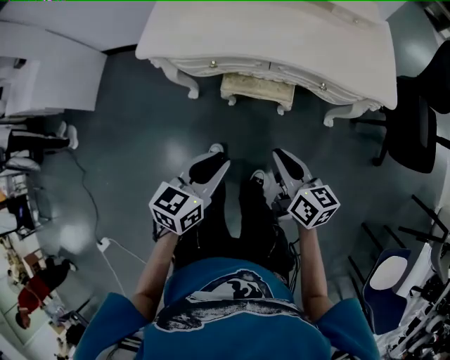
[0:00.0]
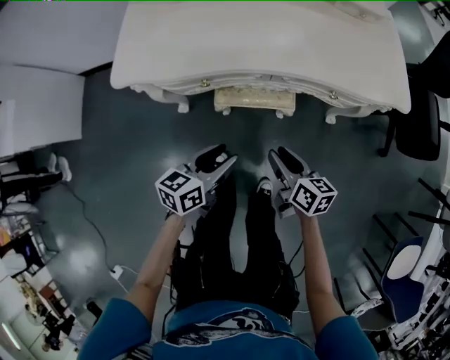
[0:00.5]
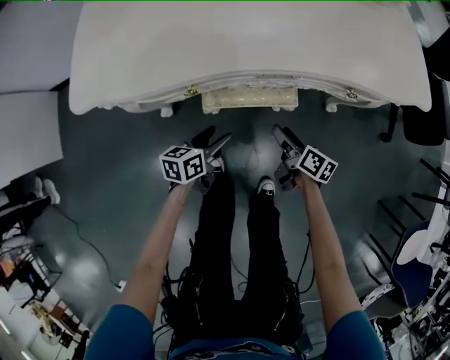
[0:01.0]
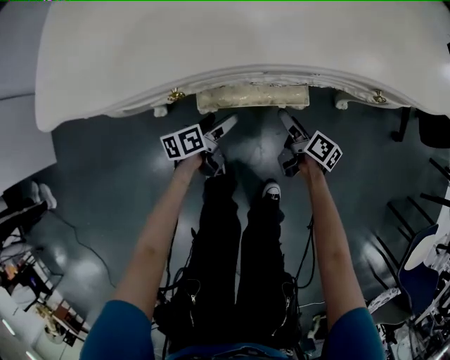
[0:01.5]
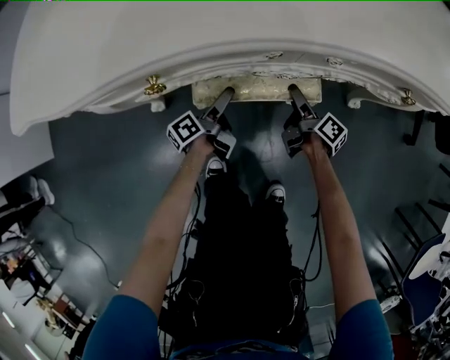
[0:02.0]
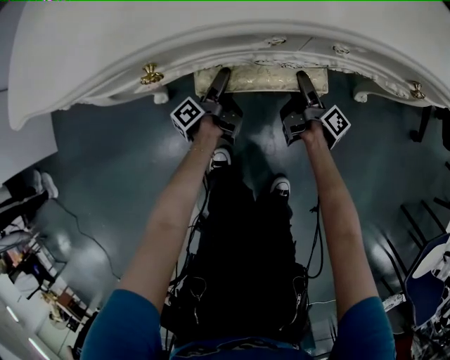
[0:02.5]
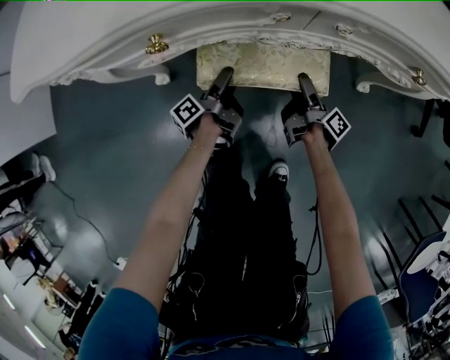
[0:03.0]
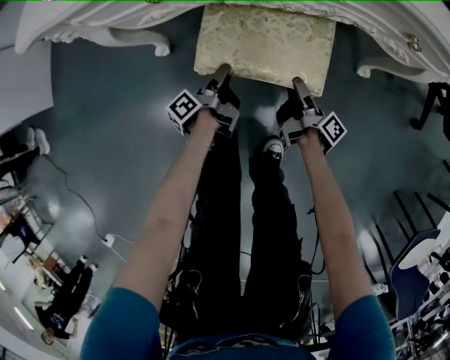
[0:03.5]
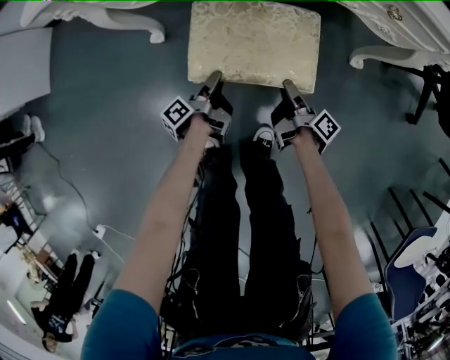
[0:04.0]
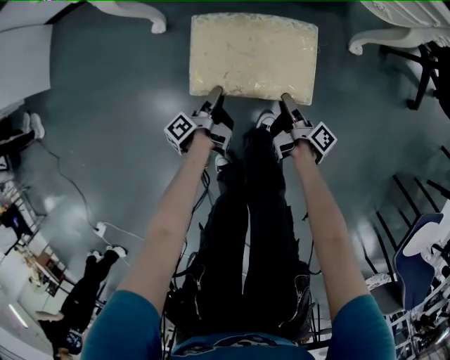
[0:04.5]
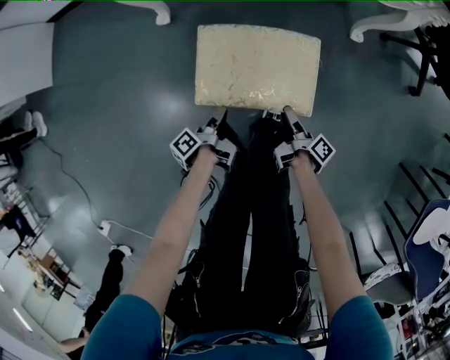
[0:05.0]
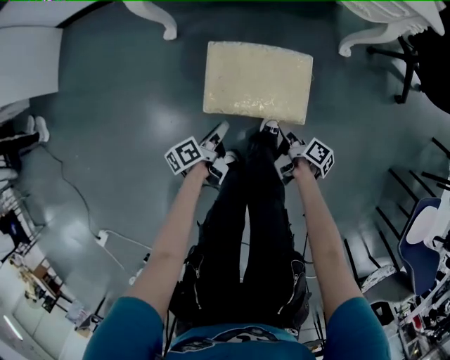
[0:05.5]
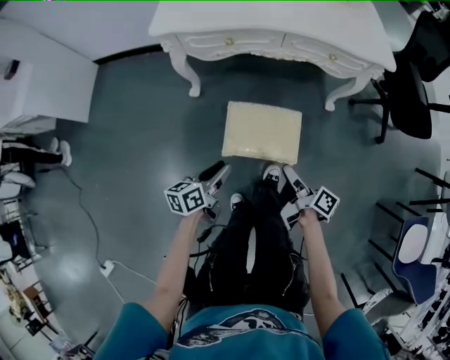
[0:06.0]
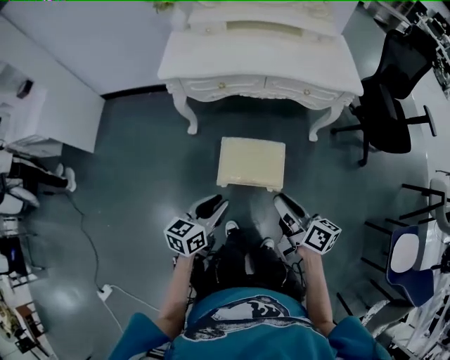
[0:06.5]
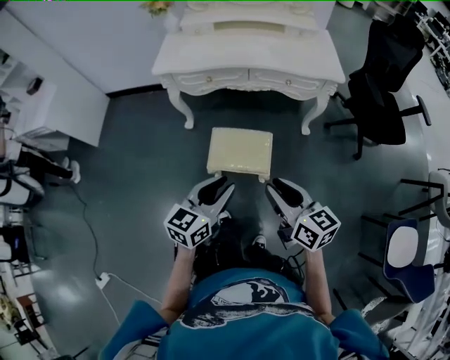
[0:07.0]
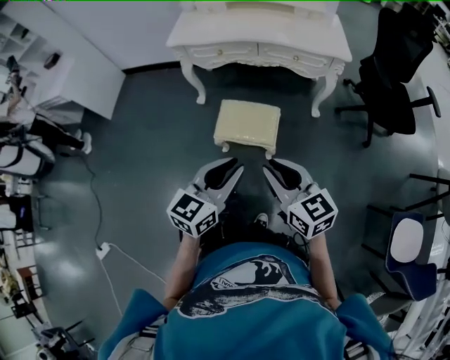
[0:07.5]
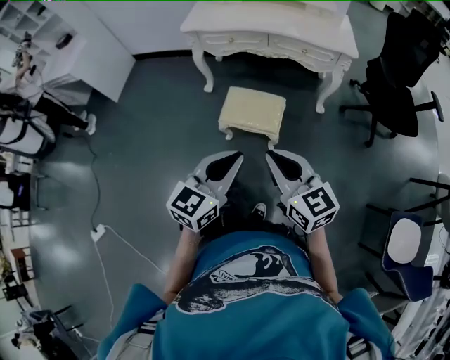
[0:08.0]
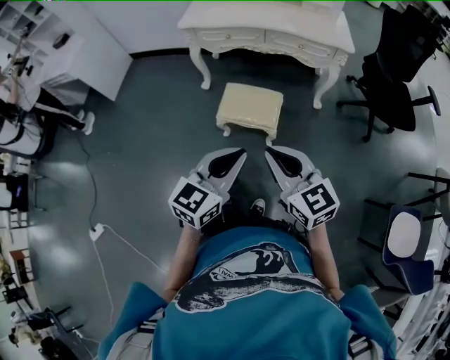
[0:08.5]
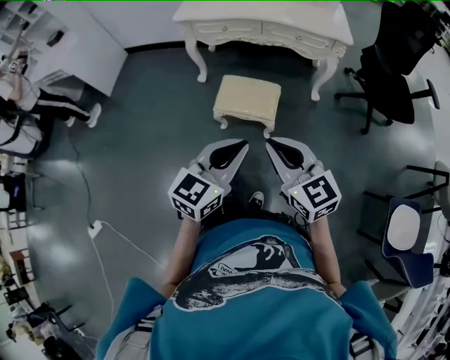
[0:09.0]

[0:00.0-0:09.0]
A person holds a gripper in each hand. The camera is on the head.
0:00.0 to 0:02.0: The two grippers go approximately 60 cm downward and forward. The right gripper rolls clockwise, seen from behind, by about 50 degrees, and opens up; the left gripper rotates around the line of its fingers by some 60 degrees, counterclockwise from behind, and opens.
0:02.0 to 0:04.5: Both grippers travel together backward, some 30 cm. The left gripper turns by about 30 degrees, and closes its fingers. Meanwhile the right gripper closes its fingers.
0:04.5 to 0:07.0: The two grippers go approximately 60 cm upward and backward. The right gripper rolls counterclockwise, seen from behind, by approximately 80 degrees. The left gripper rotates around the line of its fingers by roughly 90 degrees, clockwise from behind.
0:07.0 to 0:09.0: The grippers both shift backward by some 20 cm. The right gripper swivels approximately 30 degrees.

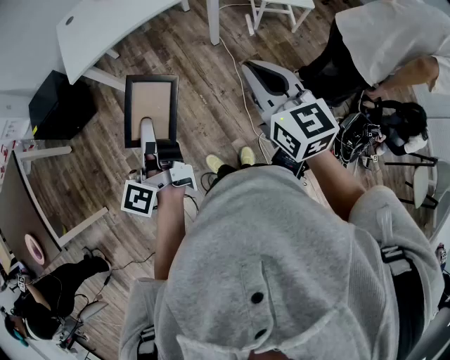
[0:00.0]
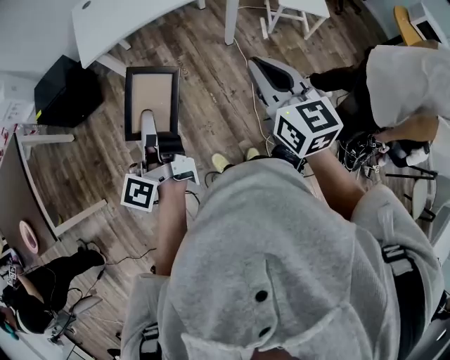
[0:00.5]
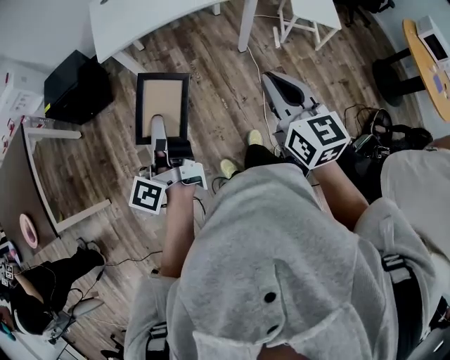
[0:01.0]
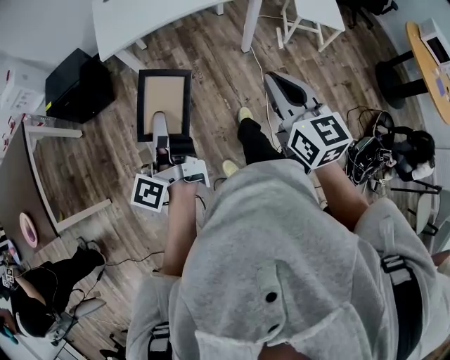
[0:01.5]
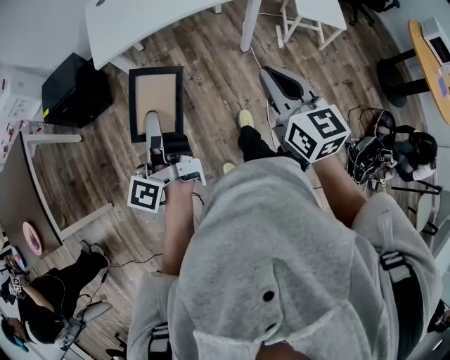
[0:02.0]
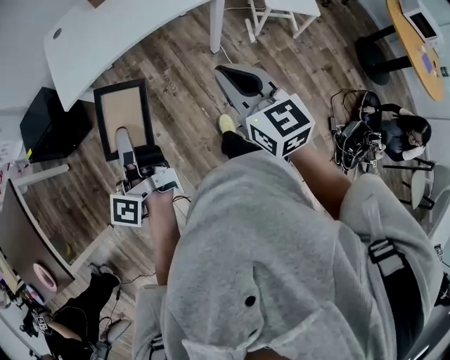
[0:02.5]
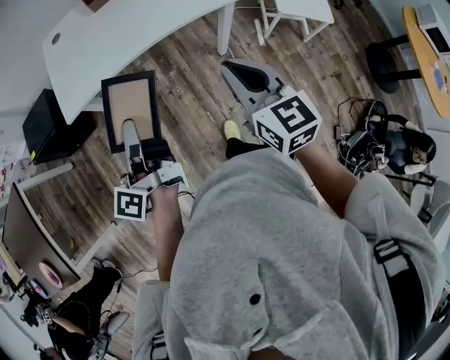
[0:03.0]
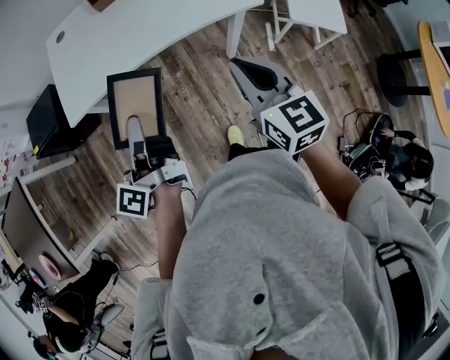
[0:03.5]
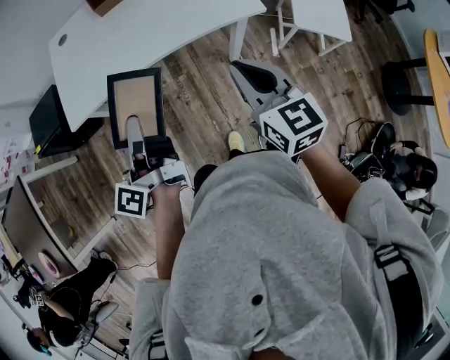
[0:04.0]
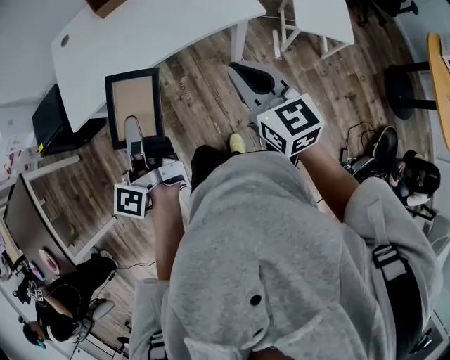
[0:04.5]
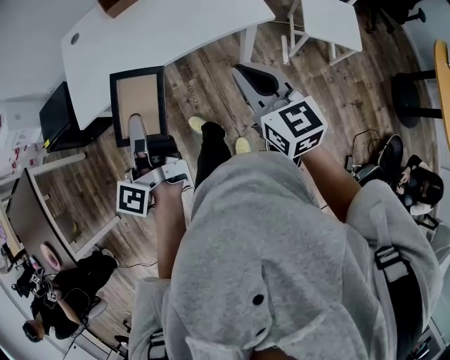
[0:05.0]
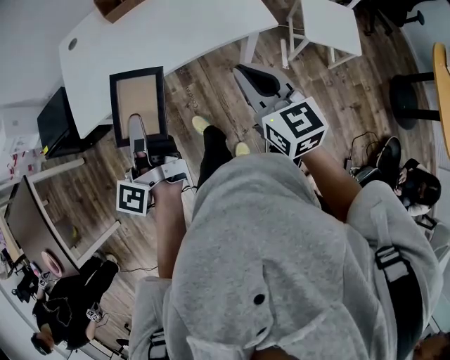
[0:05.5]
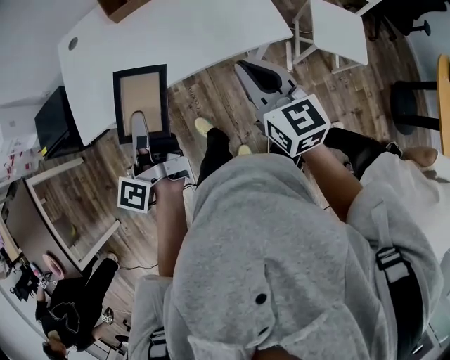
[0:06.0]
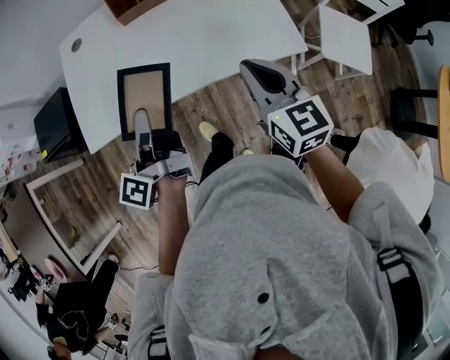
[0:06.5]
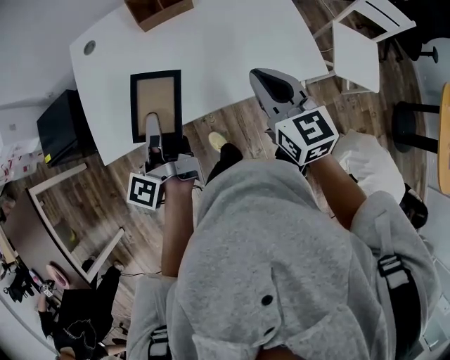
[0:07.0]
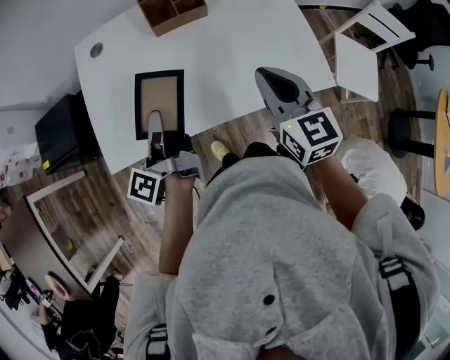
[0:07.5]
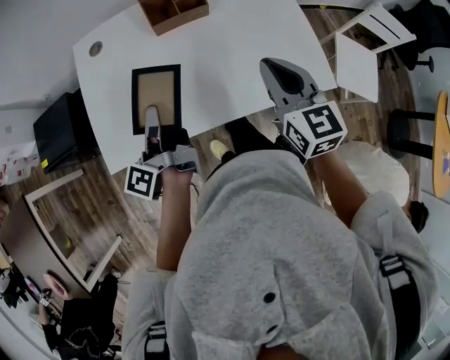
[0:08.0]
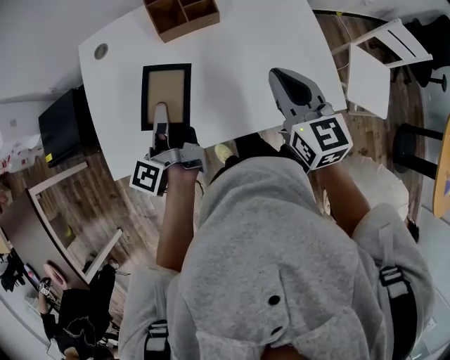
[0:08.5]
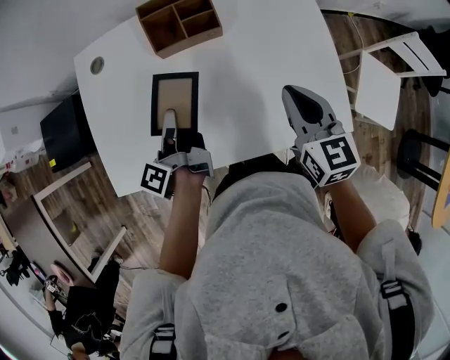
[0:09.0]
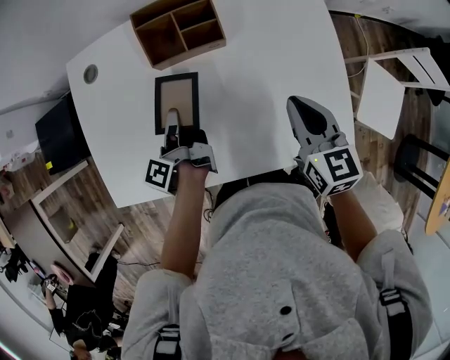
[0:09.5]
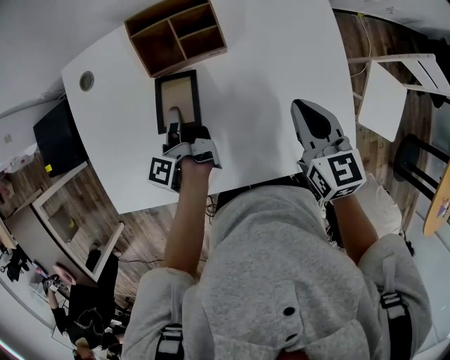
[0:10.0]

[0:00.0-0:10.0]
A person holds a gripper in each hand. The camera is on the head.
0:00.0 to 0:02.0: Both grippers move to the left and forward, approximately 15 cm.
0:02.0 to 0:04.0: Both grippers travel together forward and to the right, approximately 30 cm.
0:04.0 to 0:06.0: Both grippers travel together forward, approximately 10 cm.
0:06.0 to 0:08.0: The right gripper moves forward, roughly 20 cm. Meanwhile the left gripper is displaced forward and to the left by some 20 cm.
0:08.0 to 0:10.0: The grippers both shift forward, downward and to the right by approximately 20 cm. The left gripper changes its angle by some 30 degrees.

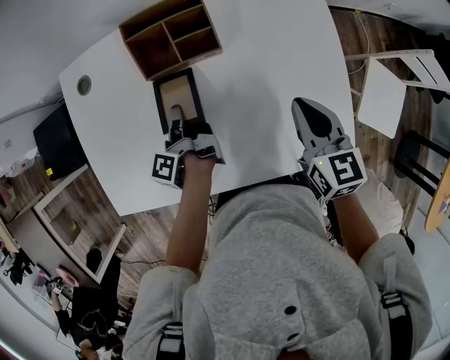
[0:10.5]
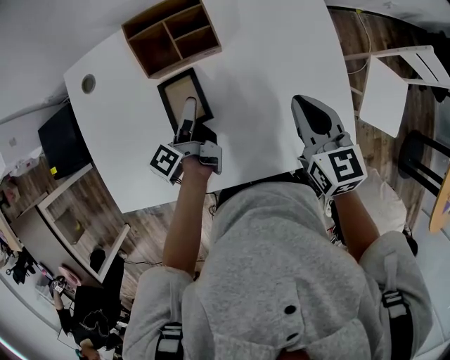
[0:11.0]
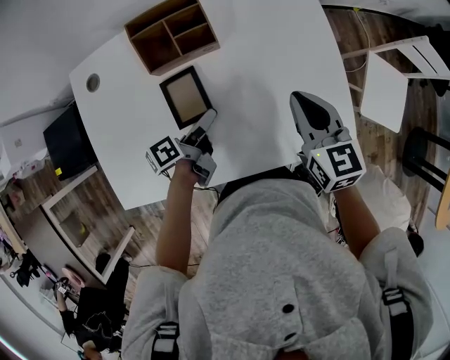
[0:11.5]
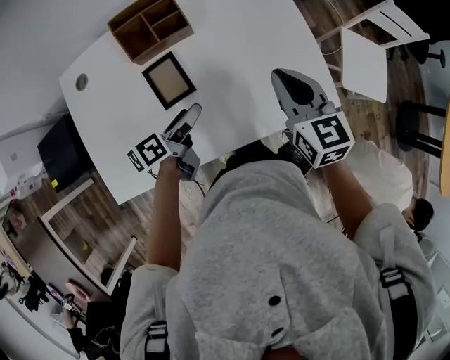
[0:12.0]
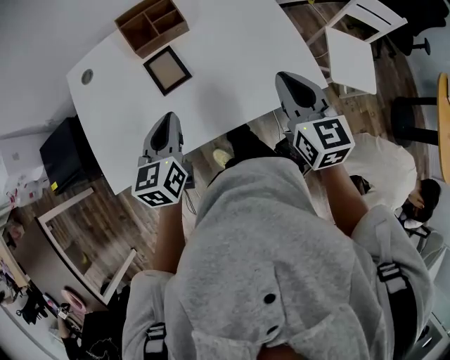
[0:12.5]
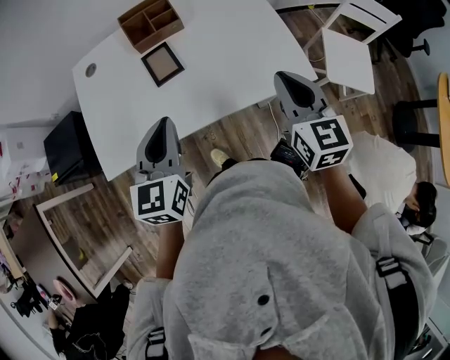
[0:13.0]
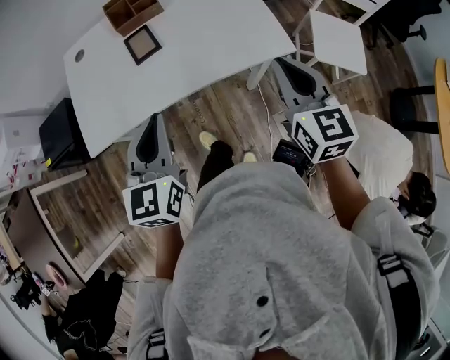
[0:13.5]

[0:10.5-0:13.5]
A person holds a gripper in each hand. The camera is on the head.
0:10.5 to 0:12.0: The left gripper moves approximately 15 cm, rotates roughly 70 degrees, and opens its fingers, while the right gripper ends up approximately 10 cm from where it was.
0:12.0 to 0:13.5: The right gripper is displaced backward and to the right by approximately 25 cm; the left gripper is displaced backward and upward by some 30 cm, rolls clockwise, seen from behind, by about 60 degrees, and closes up.

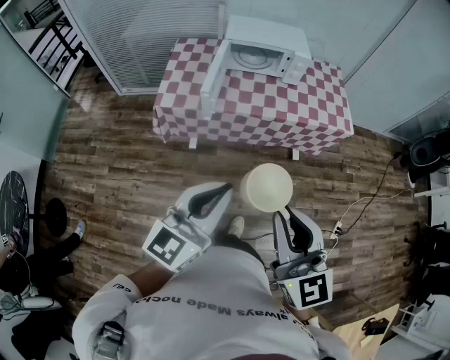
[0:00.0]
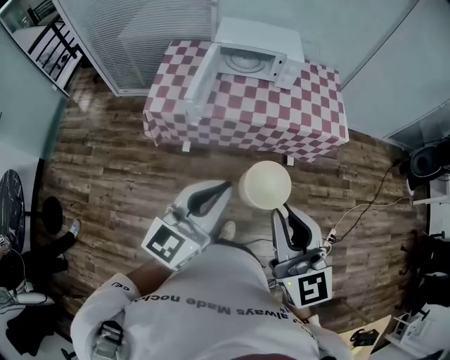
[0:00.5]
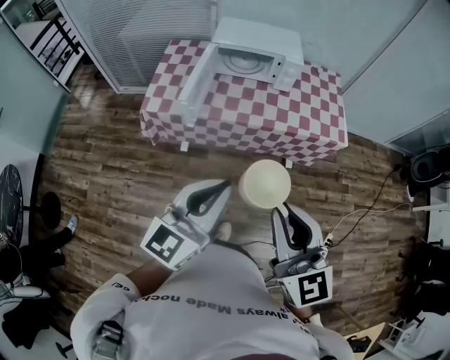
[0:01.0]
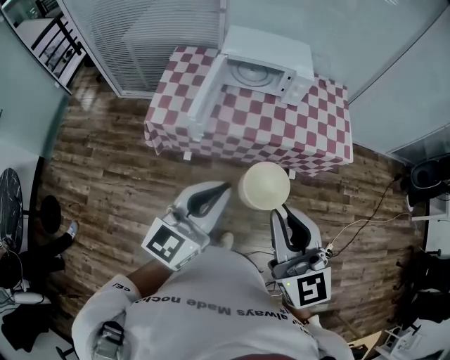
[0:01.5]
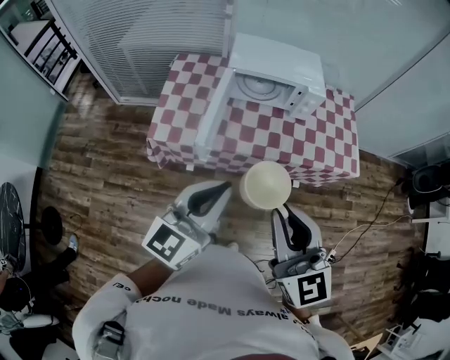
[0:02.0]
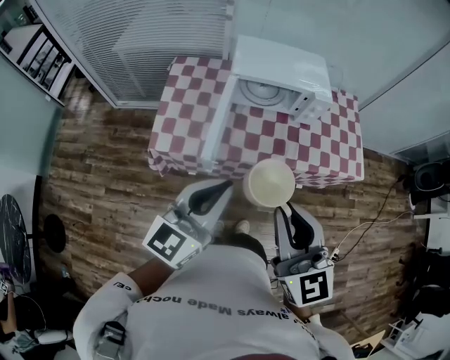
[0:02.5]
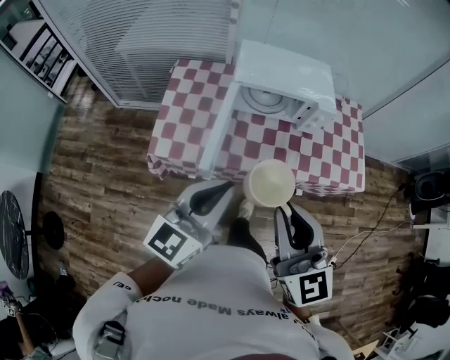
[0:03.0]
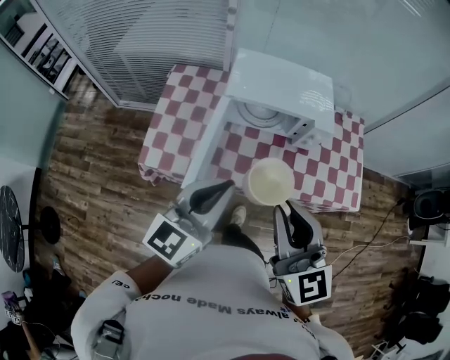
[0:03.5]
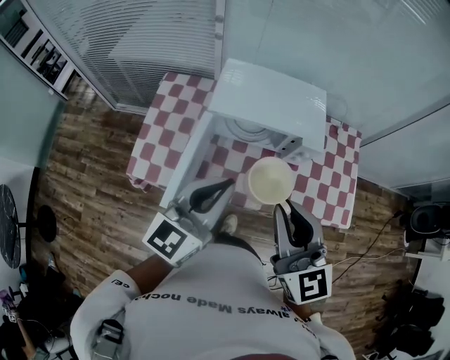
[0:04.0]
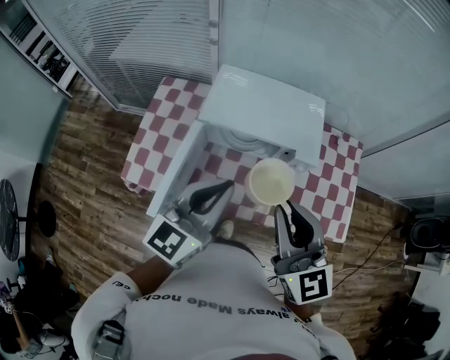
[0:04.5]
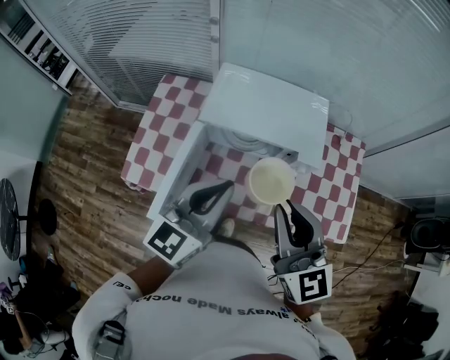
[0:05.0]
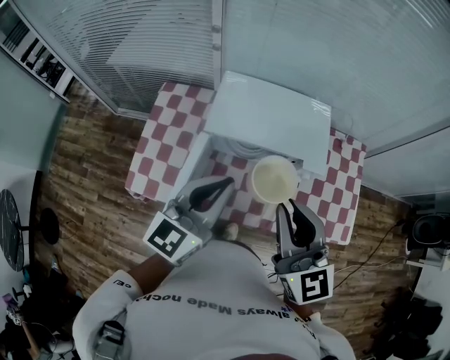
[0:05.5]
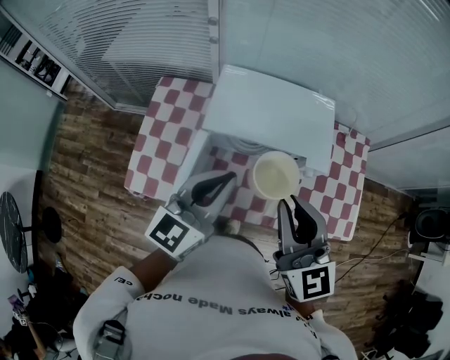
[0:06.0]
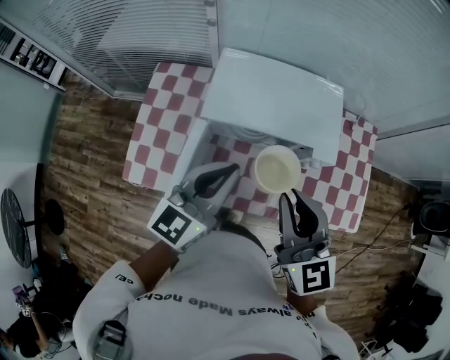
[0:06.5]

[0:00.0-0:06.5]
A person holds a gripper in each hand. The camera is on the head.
0:00.0 to 0:02.0: Both grippers move forward, some 25 cm.
0:02.0 to 0:04.5: Both grippers move forward, roughly 35 cm.
0:04.5 to 0:06.5: Both grippers move forward and downward, some 10 cm.
